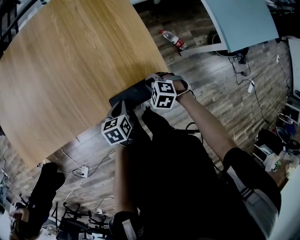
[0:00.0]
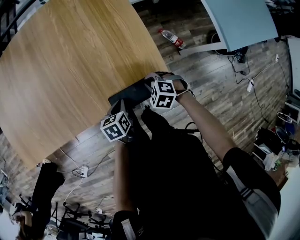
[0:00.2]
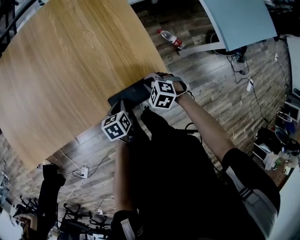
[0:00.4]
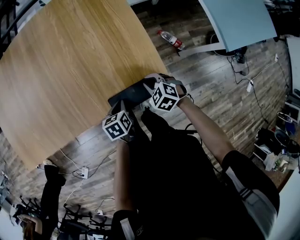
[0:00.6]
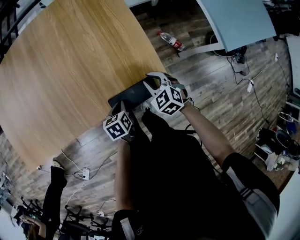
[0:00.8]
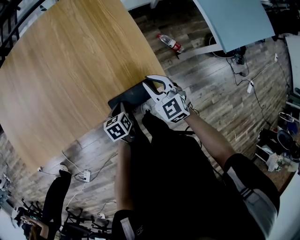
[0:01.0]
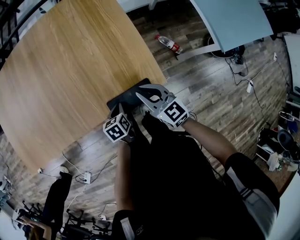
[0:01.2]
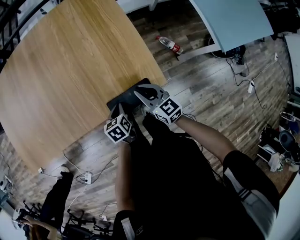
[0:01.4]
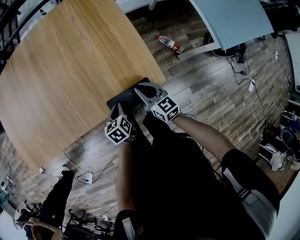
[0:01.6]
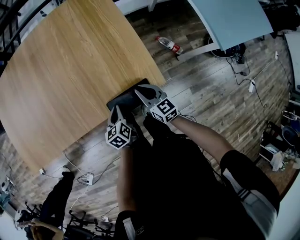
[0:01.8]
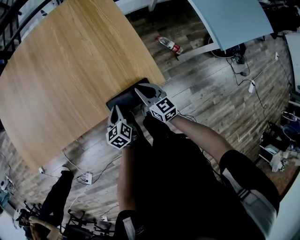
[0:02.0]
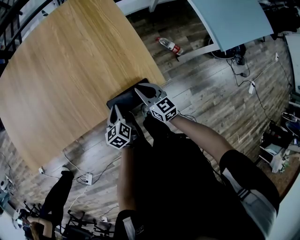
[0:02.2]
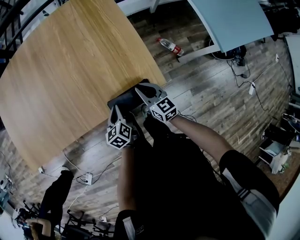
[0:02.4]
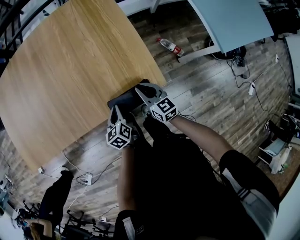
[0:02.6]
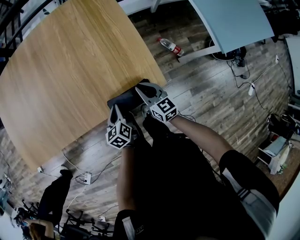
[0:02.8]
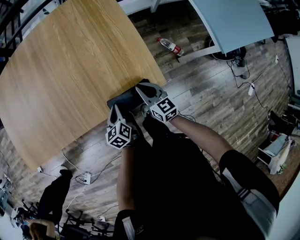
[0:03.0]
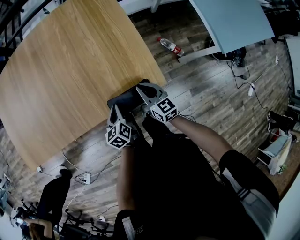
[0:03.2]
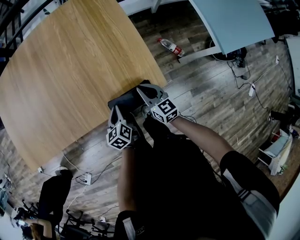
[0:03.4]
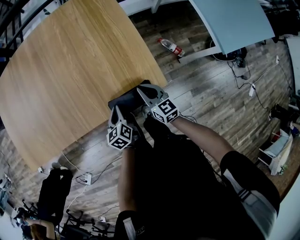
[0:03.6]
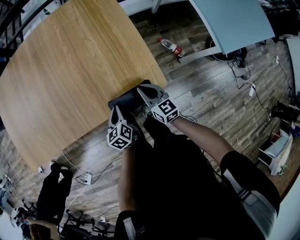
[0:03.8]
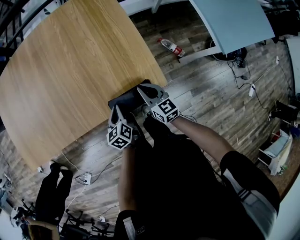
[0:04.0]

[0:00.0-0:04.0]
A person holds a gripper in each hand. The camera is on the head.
0:00.0 to 0:01.4: The right gripper moves upward, roughly 10 cm, and tilts its fingers some 50 degrees upward.
0:01.4 to 0:02.6: The grippers move only a little.
0:02.6 to 0:04.0: Both grippers stay put.

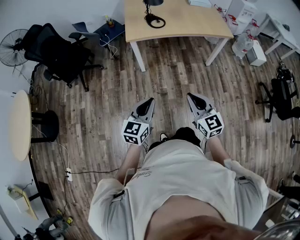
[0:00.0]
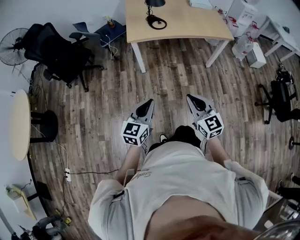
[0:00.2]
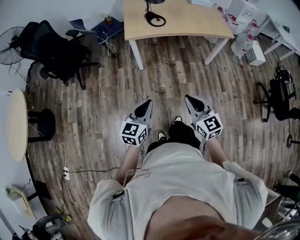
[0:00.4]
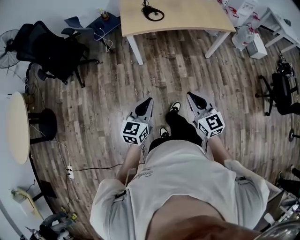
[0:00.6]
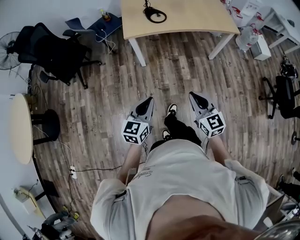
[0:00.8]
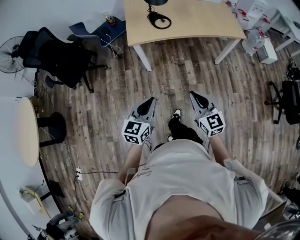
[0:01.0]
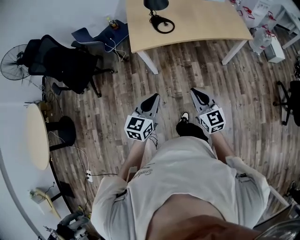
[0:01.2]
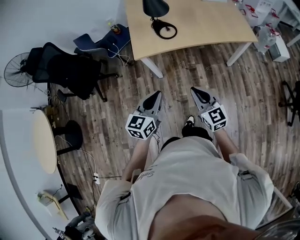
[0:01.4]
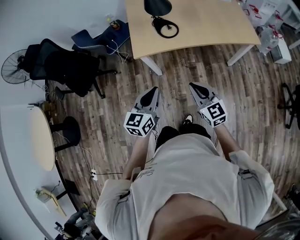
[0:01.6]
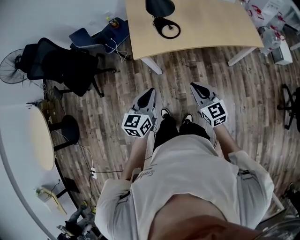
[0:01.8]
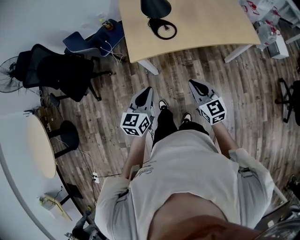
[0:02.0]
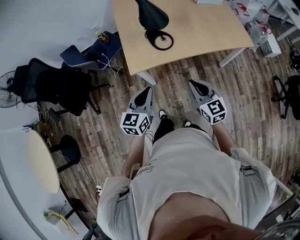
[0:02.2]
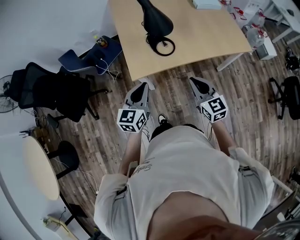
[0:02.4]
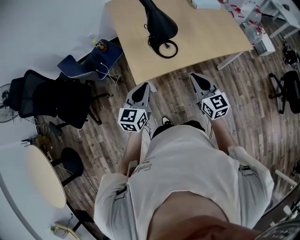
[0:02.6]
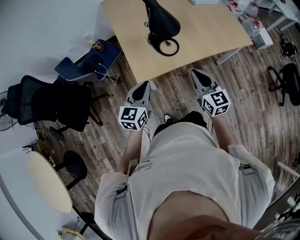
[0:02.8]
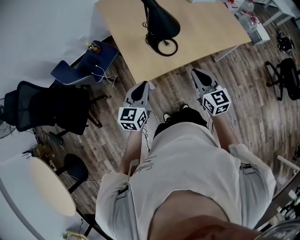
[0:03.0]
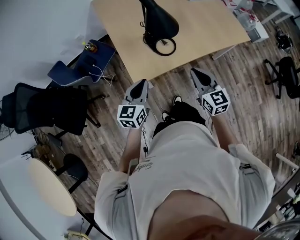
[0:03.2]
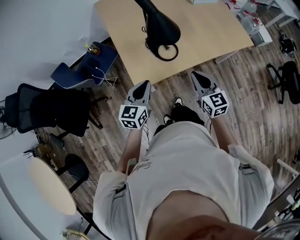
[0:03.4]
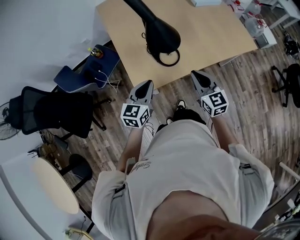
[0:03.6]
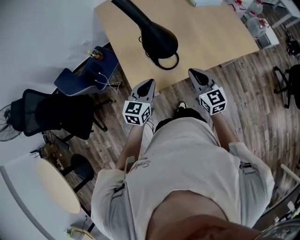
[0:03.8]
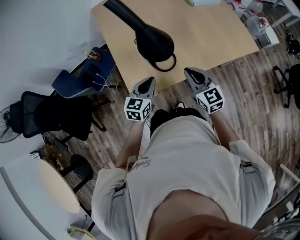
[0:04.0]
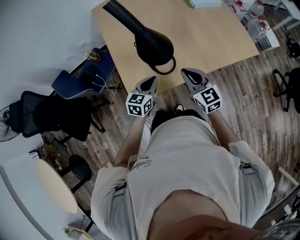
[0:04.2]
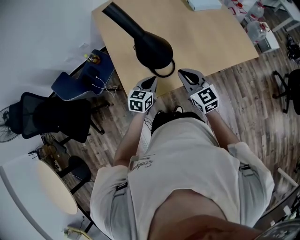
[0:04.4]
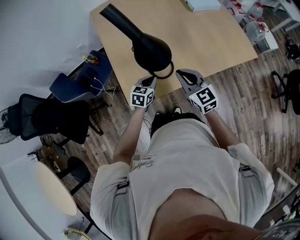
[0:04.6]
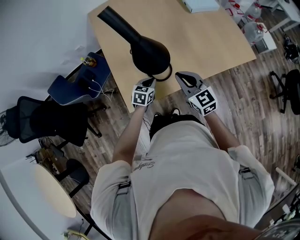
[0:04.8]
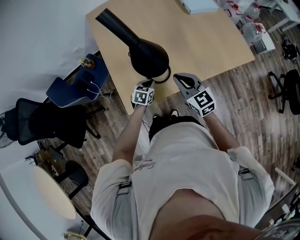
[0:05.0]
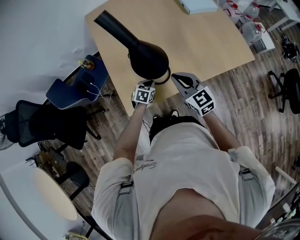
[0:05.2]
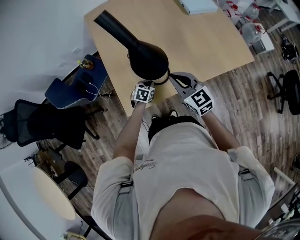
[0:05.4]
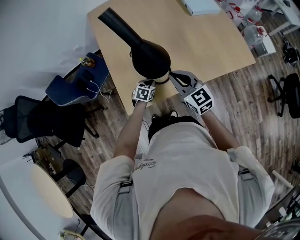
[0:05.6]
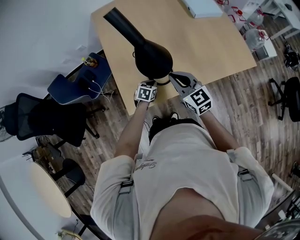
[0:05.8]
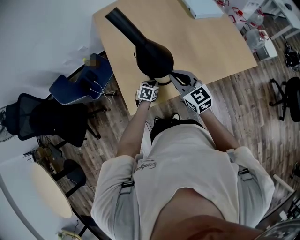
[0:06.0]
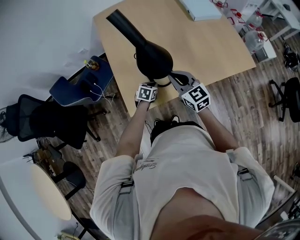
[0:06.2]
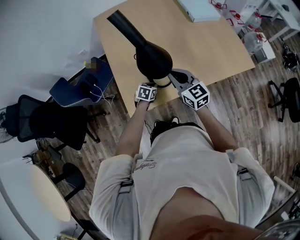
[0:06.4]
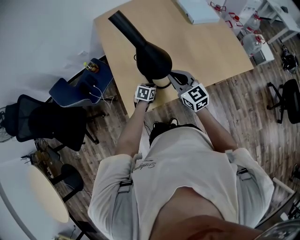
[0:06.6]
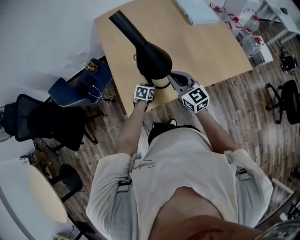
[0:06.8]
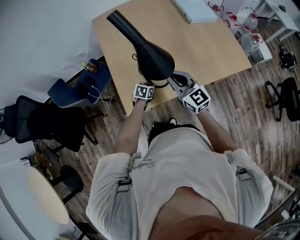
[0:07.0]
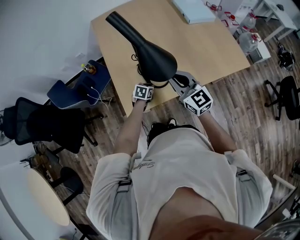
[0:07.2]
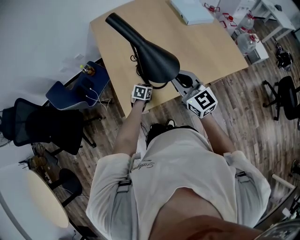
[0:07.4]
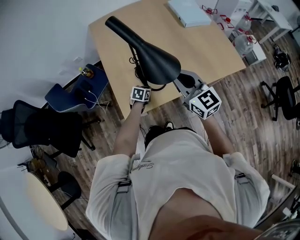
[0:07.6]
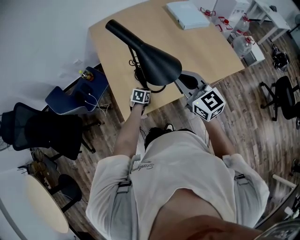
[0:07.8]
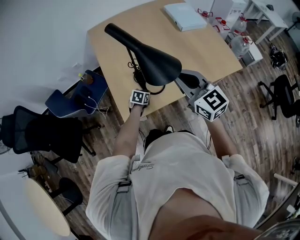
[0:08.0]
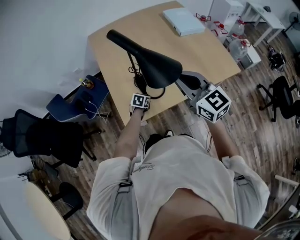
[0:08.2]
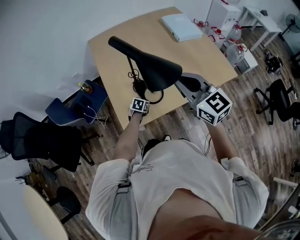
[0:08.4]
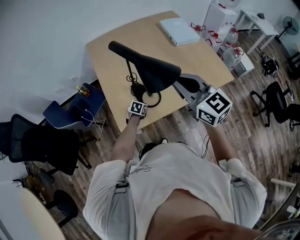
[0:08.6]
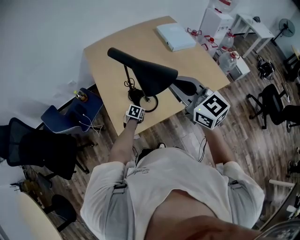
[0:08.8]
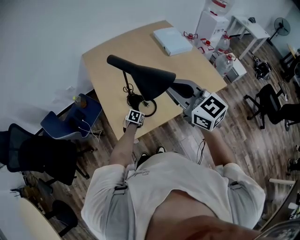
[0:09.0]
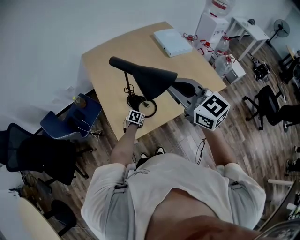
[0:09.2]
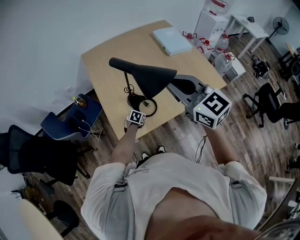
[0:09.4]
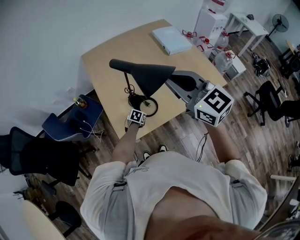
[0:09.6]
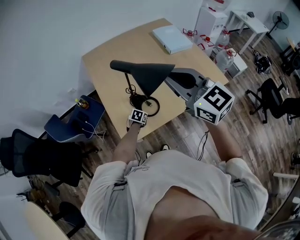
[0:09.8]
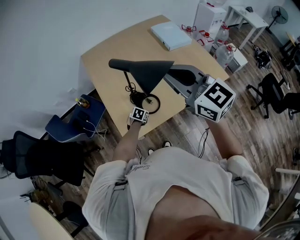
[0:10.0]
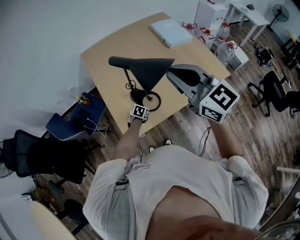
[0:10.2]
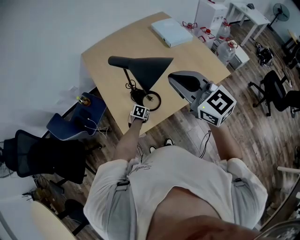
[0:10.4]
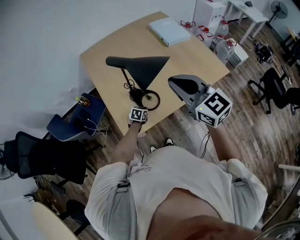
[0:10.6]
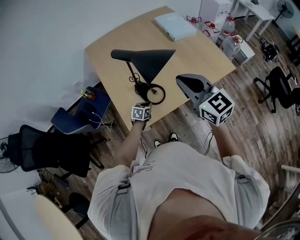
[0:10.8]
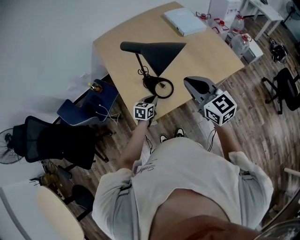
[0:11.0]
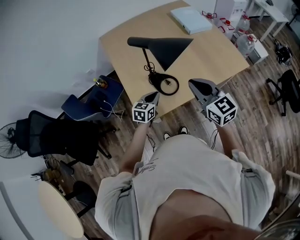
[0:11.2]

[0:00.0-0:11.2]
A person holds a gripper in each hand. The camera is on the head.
0:00.0 to 0:01.6: Both grippers travel together forward, roughly 30 cm.
0:01.6 to 0:03.2: The right gripper travels forward by about 20 cm, and rotates approximately 20 degrees, while the left gripper is displaced forward and to the left by about 30 cm.
0:03.2 to 0:04.8: The left gripper travels downward, forward and to the right by roughly 30 cm, and turns by roughly 30 degrees; the right gripper is displaced forward by approximately 15 cm.
0:04.8 to 0:06.4: The left gripper heads downward, covering some 5 cm. Meanwhile the right gripper ends up about 5 cm from where it was.
0:06.4 to 0:08.0: The right gripper travels upward by some 15 cm.
0:08.0 to 0:09.6: The right gripper travels upward by some 15 cm.
0:09.6 to 0:11.2: The right gripper moves downward, approximately 15 cm, while the left gripper is displaced upward by some 20 cm, and tilts its fingers approximately 30 degrees upward.

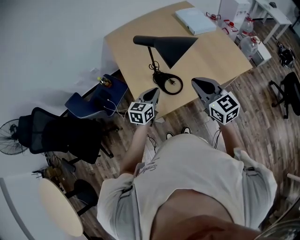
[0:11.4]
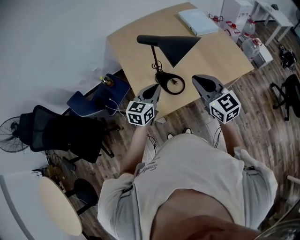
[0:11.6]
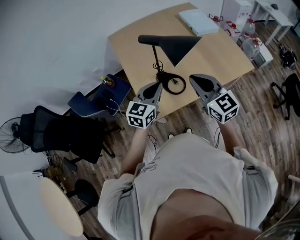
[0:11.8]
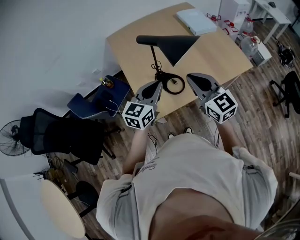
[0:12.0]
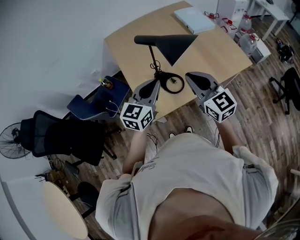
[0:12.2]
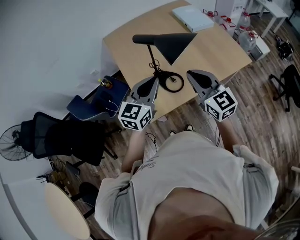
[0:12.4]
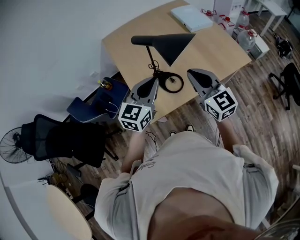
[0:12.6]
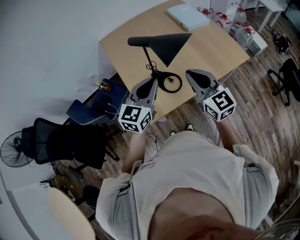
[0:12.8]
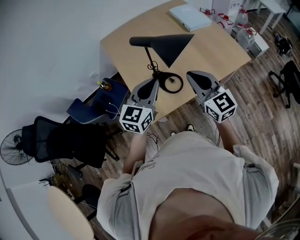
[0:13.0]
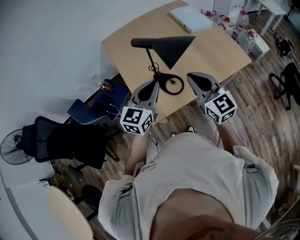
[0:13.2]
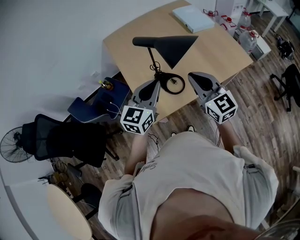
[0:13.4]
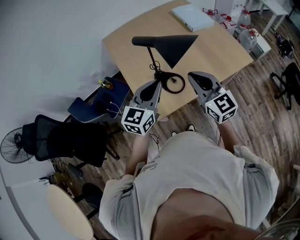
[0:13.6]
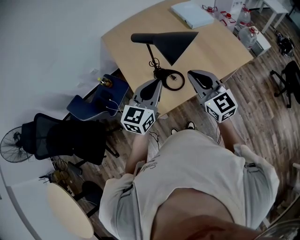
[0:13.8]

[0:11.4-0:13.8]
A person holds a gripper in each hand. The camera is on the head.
0:11.4 to 0:12.6: The left gripper goes roughly 15 cm upward.
0:12.6 to 0:13.8: Both grippers stay about where they are.

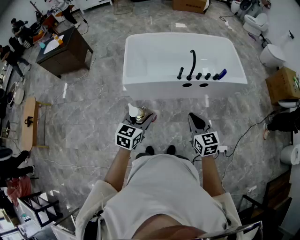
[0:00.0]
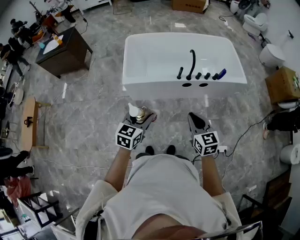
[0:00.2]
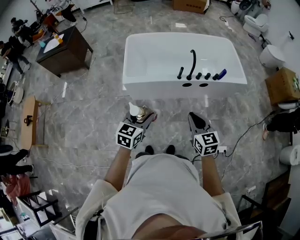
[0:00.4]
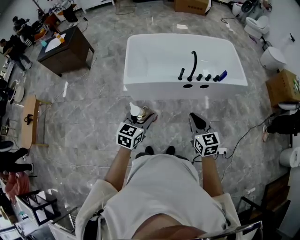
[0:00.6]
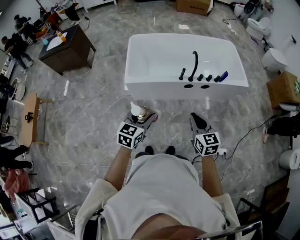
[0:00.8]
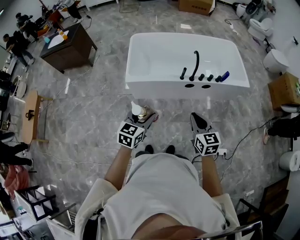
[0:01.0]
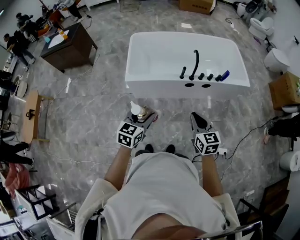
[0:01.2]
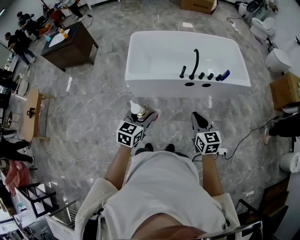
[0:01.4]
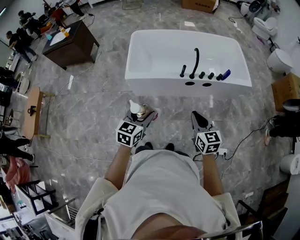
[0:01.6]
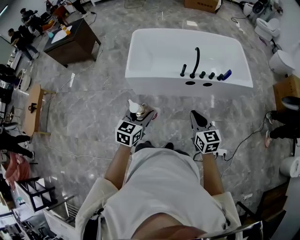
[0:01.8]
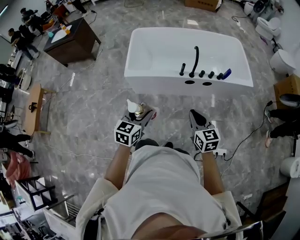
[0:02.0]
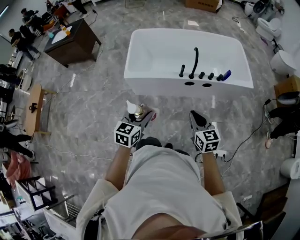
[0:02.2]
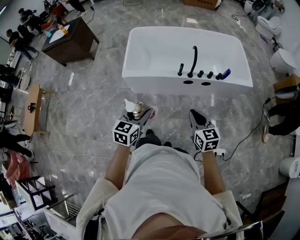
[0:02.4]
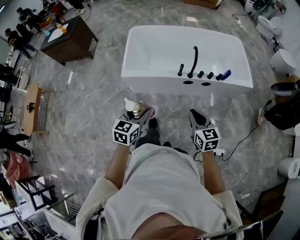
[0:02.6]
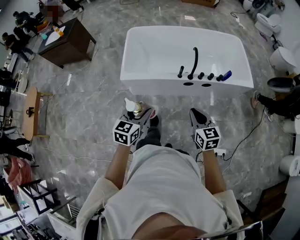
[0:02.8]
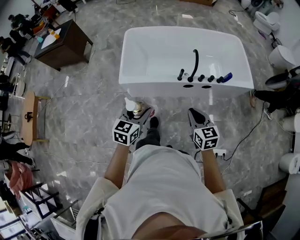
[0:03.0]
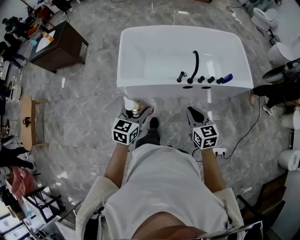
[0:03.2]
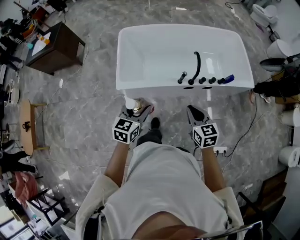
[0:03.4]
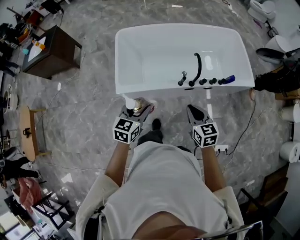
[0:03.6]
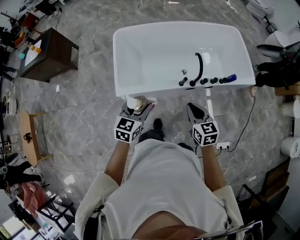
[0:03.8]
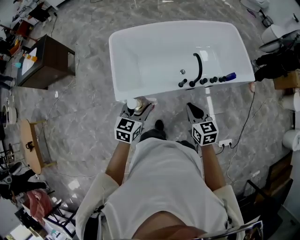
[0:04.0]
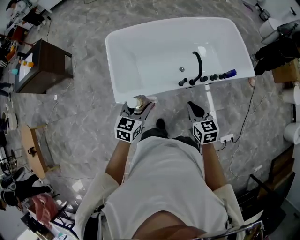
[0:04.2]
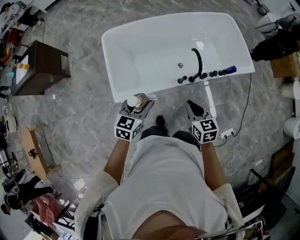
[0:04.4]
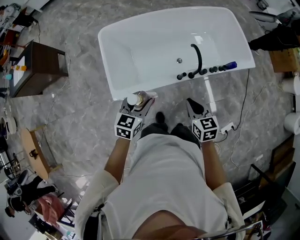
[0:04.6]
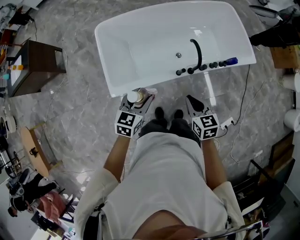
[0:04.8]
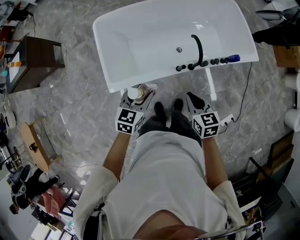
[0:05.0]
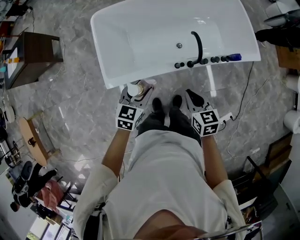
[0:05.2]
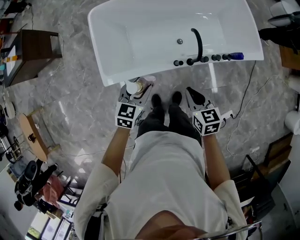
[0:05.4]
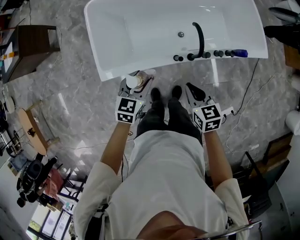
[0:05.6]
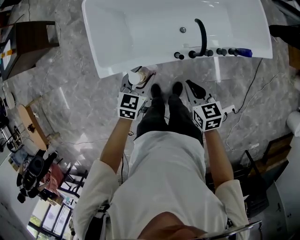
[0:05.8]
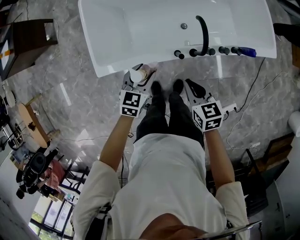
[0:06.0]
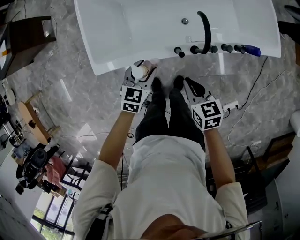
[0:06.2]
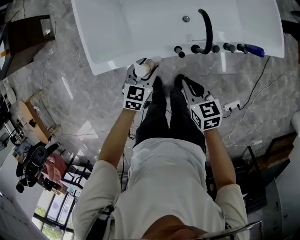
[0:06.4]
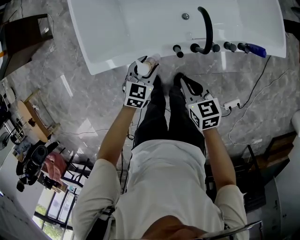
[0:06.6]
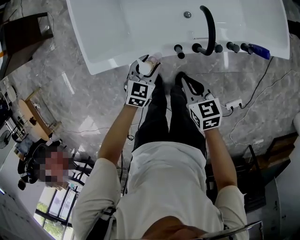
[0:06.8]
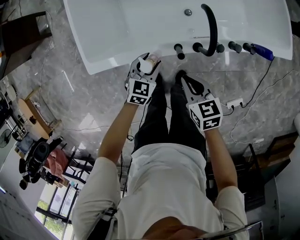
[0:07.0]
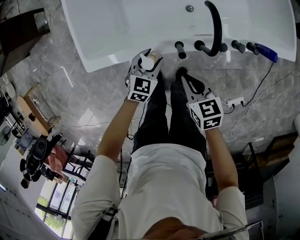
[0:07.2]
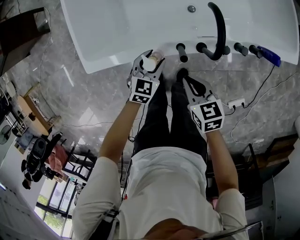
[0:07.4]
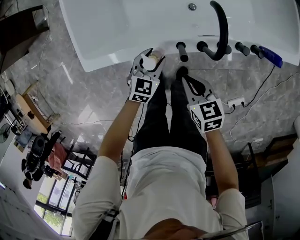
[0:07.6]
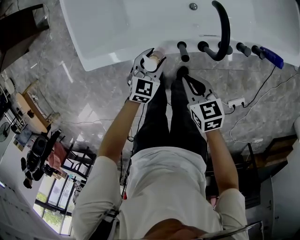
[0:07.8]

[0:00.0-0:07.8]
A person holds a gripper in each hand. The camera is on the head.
0:00.0 to 0:01.6: The right gripper changes place by about 5 cm.
0:01.6 to 0:03.2: The grippers both shift forward by about 20 cm.
0:03.2 to 0:04.6: The grippers both shift forward by some 20 cm.
0:04.6 to 0:06.2: The left gripper travels downward, forward and to the right by roughly 25 cm. The right gripper is displaced downward and forward by roughly 20 cm.
0:06.2 to 0:07.8: Both grippers move downward, about 15 cm.
